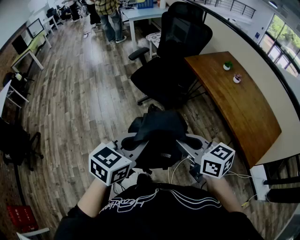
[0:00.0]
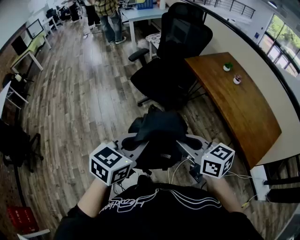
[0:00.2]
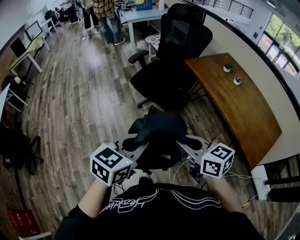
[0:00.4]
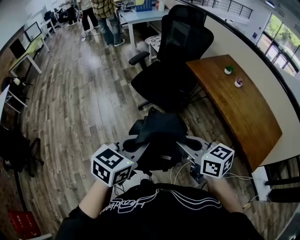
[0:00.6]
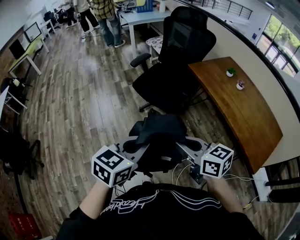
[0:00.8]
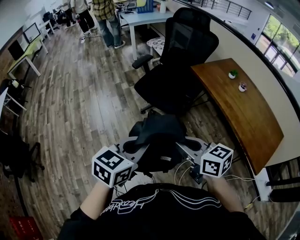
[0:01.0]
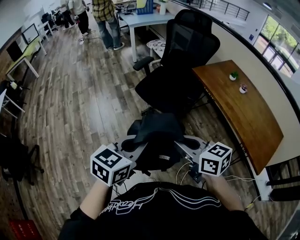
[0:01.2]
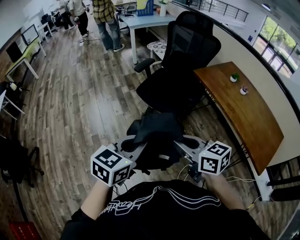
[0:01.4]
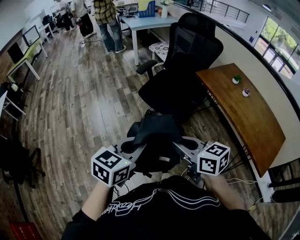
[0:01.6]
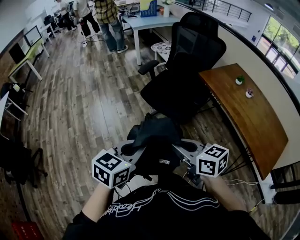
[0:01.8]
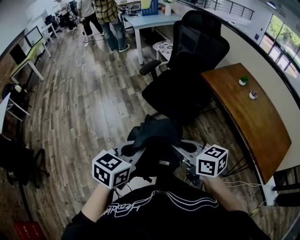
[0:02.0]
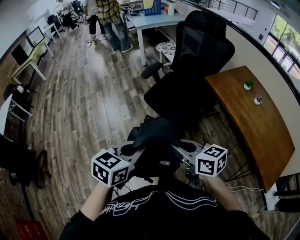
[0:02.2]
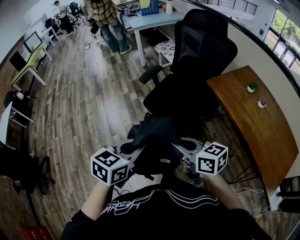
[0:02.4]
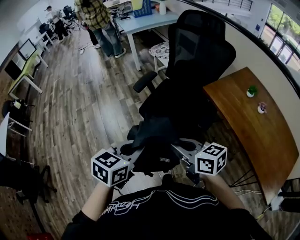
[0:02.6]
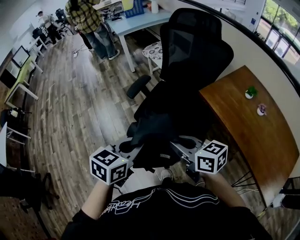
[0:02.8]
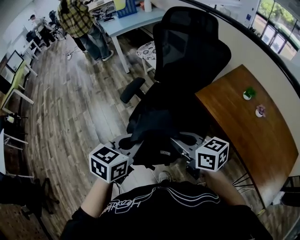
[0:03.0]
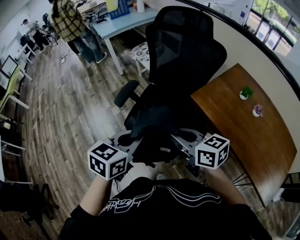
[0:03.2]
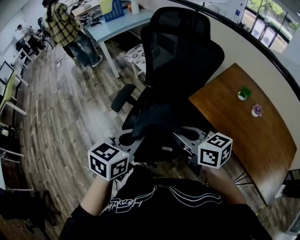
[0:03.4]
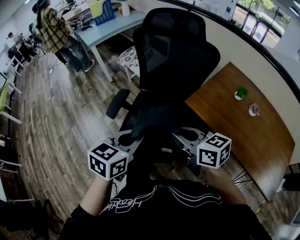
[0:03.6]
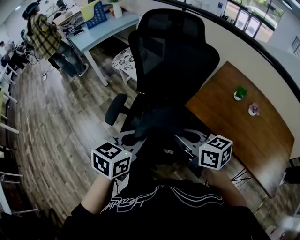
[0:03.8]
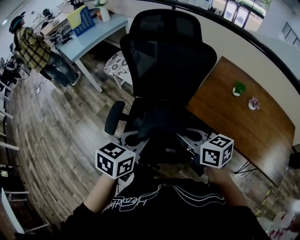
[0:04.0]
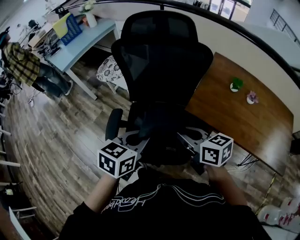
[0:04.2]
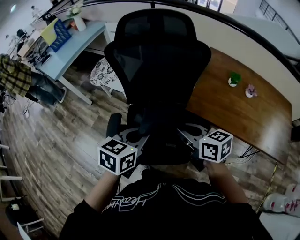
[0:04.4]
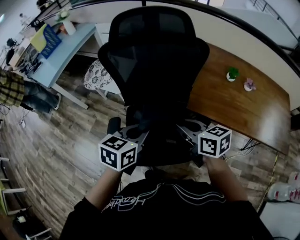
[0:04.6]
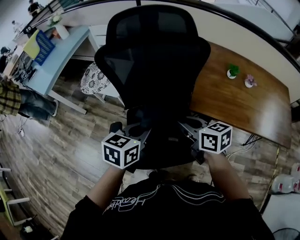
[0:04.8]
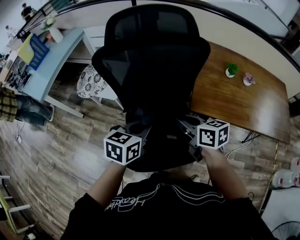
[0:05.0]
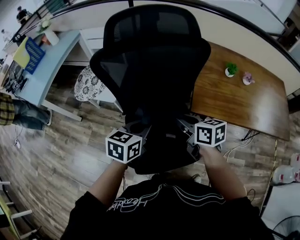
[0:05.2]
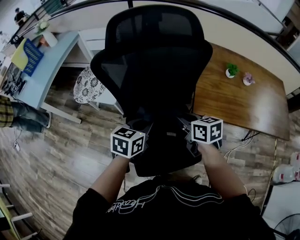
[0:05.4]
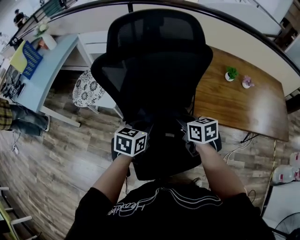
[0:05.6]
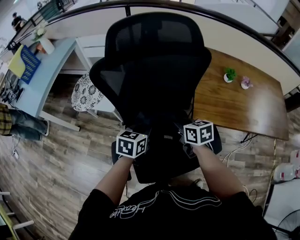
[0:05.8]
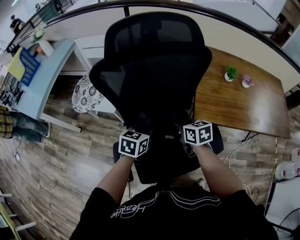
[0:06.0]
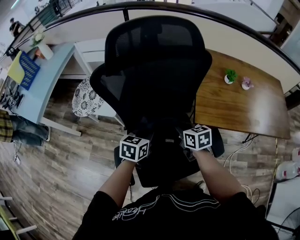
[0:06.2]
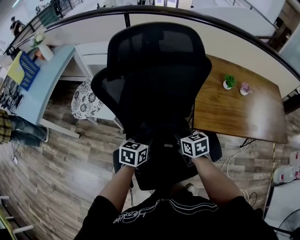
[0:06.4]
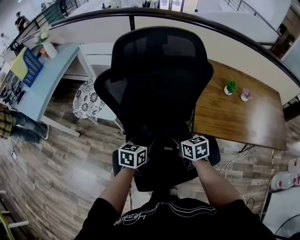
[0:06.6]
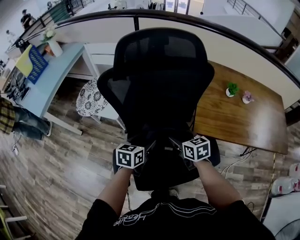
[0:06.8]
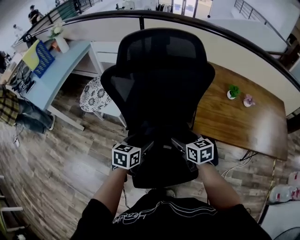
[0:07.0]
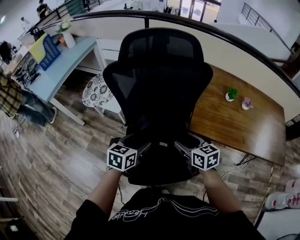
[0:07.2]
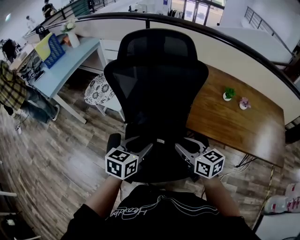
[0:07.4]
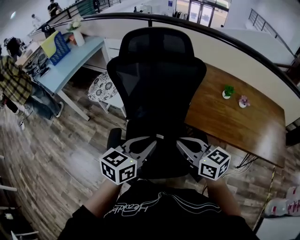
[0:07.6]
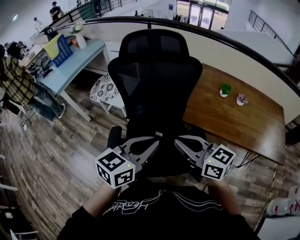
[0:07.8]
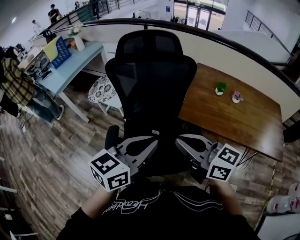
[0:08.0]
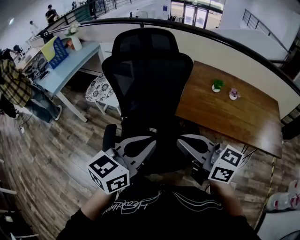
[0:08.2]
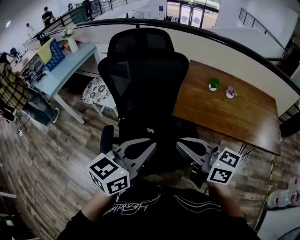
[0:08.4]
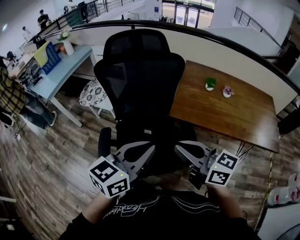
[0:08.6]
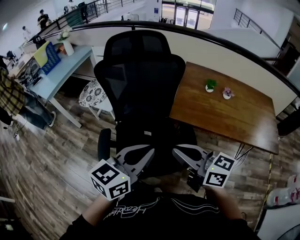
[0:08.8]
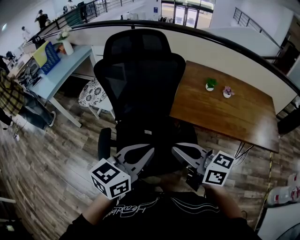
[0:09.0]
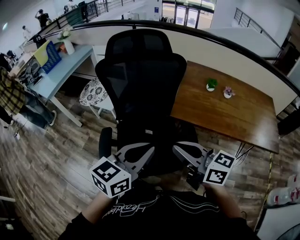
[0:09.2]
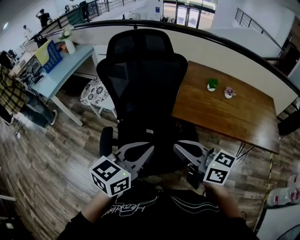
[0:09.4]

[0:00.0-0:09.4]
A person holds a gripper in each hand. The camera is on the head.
0:00.0 to 0:01.6: Both grippers travel together to the left and forward, about 15 cm.
0:01.6 to 0:03.2: Both grippers move forward, approximately 40 cm.
0:03.2 to 0:04.8: The left gripper ends up about 30 cm from where it was, and rotates about 30 degrees. The right gripper shifts by about 25 cm, and rotates some 40 degrees.
0:04.8 to 0:06.2: Both grippers travel together downward and forward, approximately 15 cm.
0:06.2 to 0:07.8: Both grippers move upward and backward, some 30 cm. The right gripper tips its fingers upward by approximately 30 degrees, and opens, then closes again. Meanwhile the left gripper changes its angle by approximately 20 degrees, and opens and closes again.
0:07.8 to 0:09.4: The right gripper goes approximately 5 cm backward.

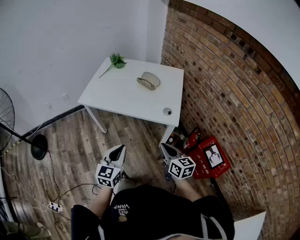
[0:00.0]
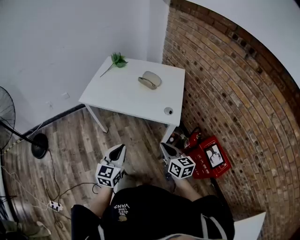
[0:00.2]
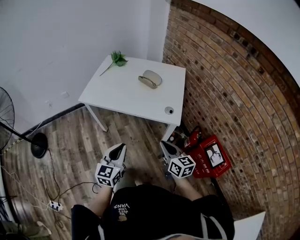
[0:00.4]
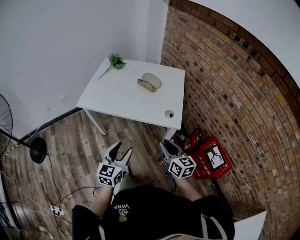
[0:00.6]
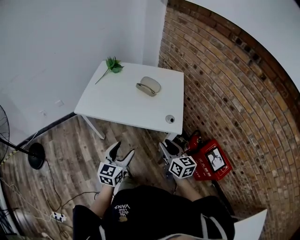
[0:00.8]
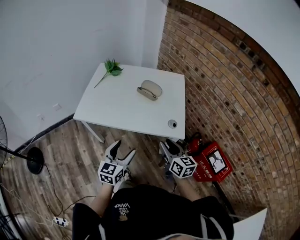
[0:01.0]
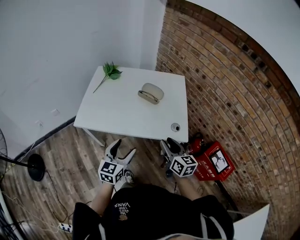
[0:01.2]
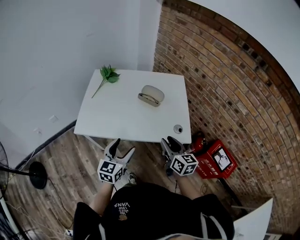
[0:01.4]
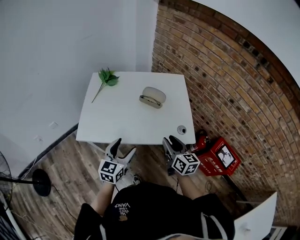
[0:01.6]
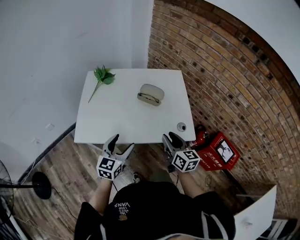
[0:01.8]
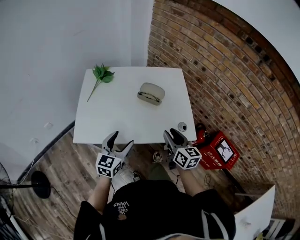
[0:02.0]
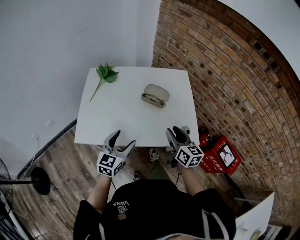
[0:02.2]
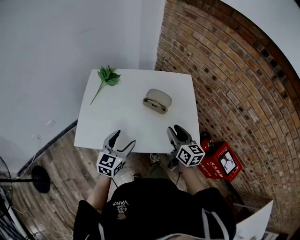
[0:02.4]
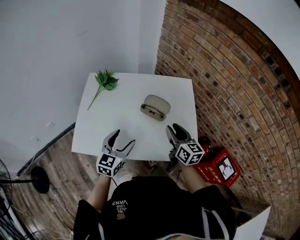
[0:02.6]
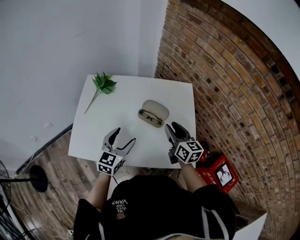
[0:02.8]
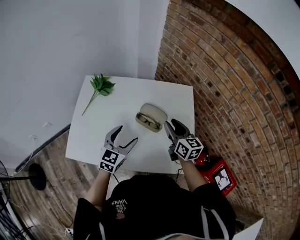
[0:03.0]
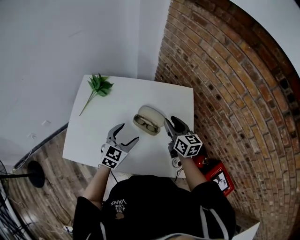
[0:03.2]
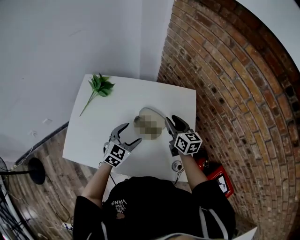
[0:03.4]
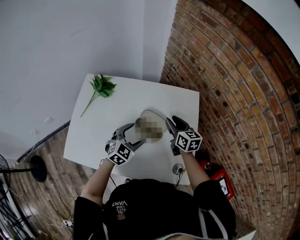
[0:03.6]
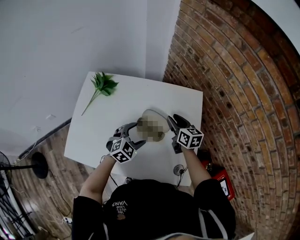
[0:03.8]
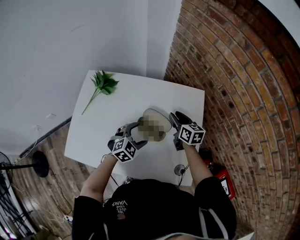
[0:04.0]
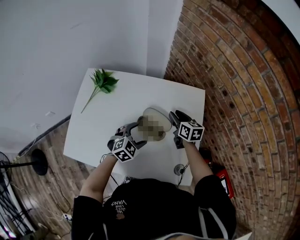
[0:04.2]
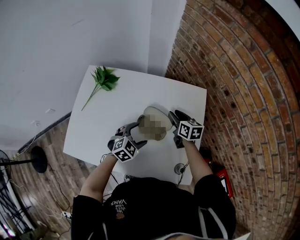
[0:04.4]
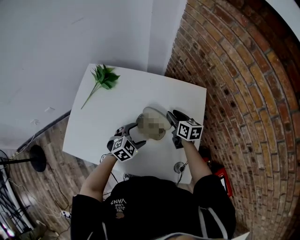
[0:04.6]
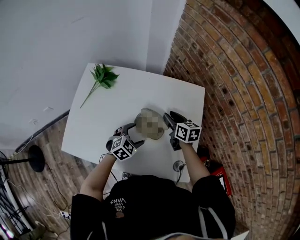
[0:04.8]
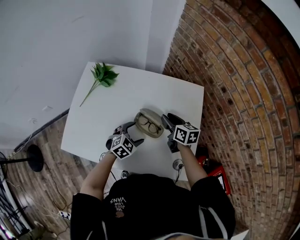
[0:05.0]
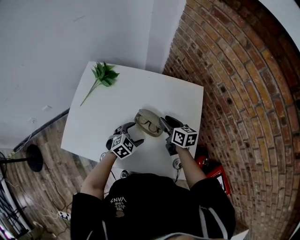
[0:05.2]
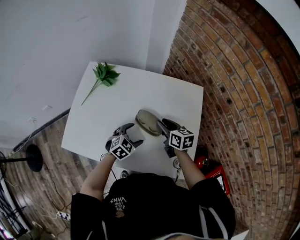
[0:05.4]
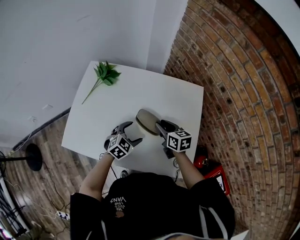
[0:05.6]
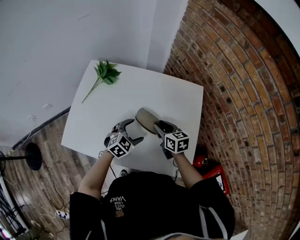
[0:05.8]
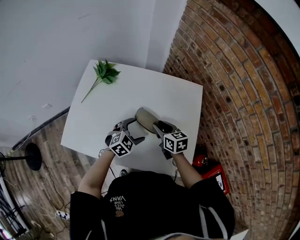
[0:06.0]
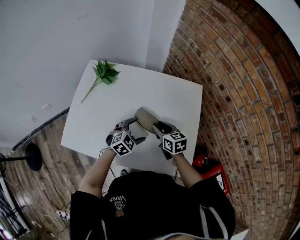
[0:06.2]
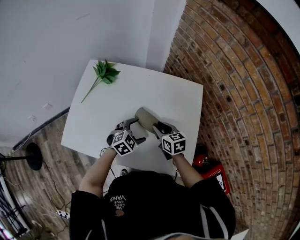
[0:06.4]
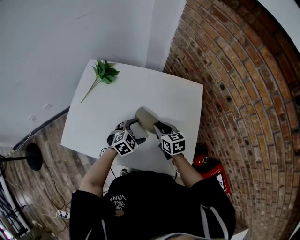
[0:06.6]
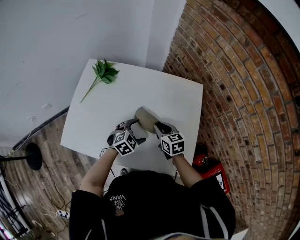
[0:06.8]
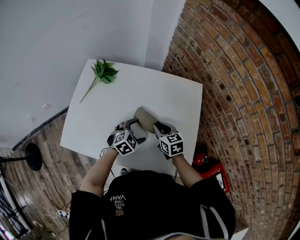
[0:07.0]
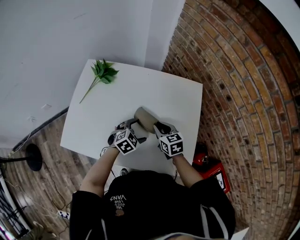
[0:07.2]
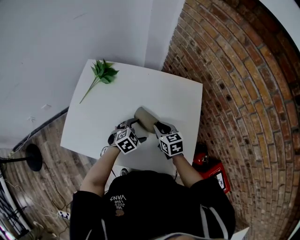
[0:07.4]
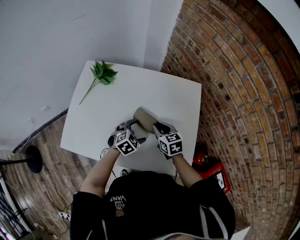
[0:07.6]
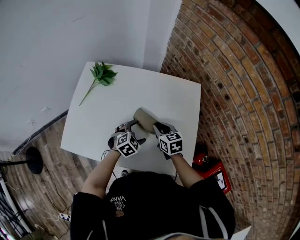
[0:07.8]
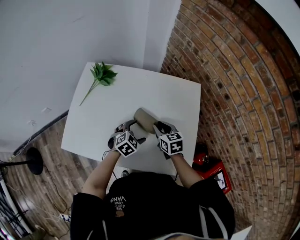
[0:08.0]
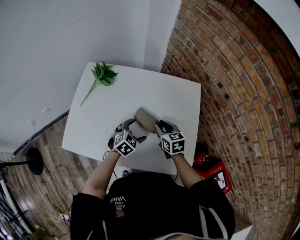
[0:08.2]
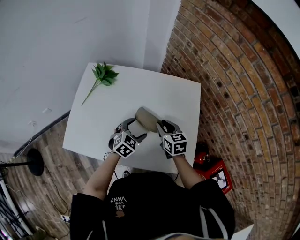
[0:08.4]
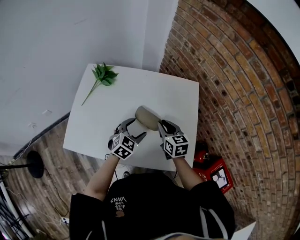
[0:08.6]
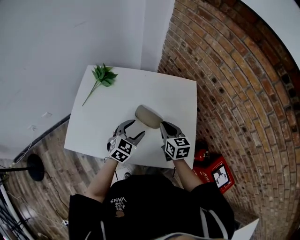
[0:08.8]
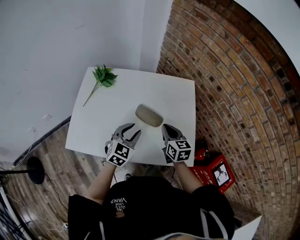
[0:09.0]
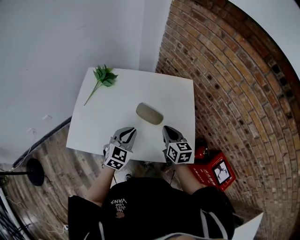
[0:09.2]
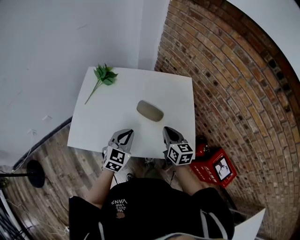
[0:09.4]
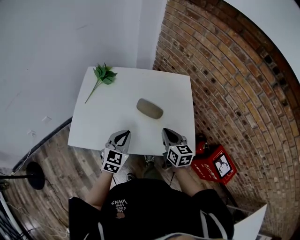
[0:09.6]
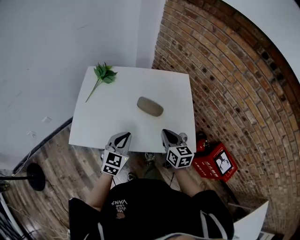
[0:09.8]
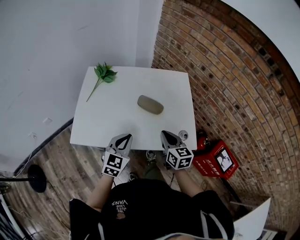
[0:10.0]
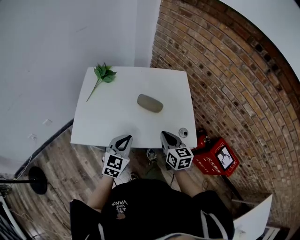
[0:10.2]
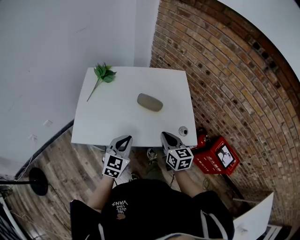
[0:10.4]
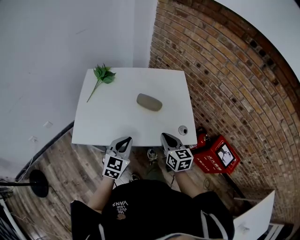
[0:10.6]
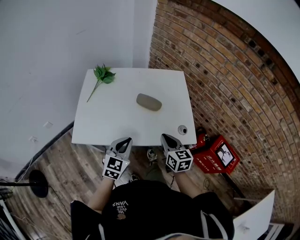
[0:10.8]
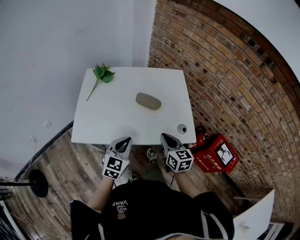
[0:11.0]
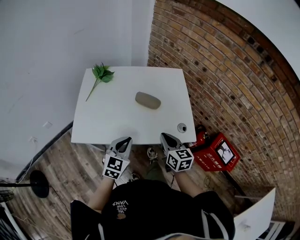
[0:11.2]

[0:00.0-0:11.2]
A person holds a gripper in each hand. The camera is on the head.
0:00.0 to 0:01.6: Both grippers travel together forward and to the left, approximately 25 cm. The right gripper opens. Meanwhile the left gripper opens up.
0:01.6 to 0:03.2: Both grippers travel together forward, approximately 30 cm.
0:03.2 to 0:04.8: The left gripper moves downward, some 10 cm, and swivels approximately 30 degrees; the right gripper moves downward and forward, some 10 cm.
0:04.8 to 0:06.4: The right gripper shifts some 10 cm backward.
0:06.4 to 0:08.0: The grippers stay close to where they were, moving slightly.
0:08.0 to 0:09.6: The left gripper travels upward, backward and to the left by about 20 cm, swivels about 30 degrees, and closes its fingers. The right gripper shifts about 15 cm backward and upward, turns by some 20 degrees, and closes up.
0:09.6 to 0:11.2: Both grippers travel together backward, some 10 cm.

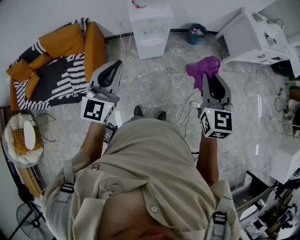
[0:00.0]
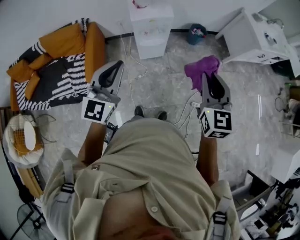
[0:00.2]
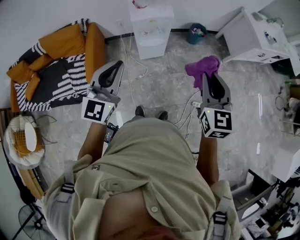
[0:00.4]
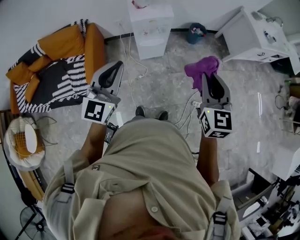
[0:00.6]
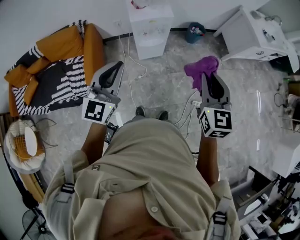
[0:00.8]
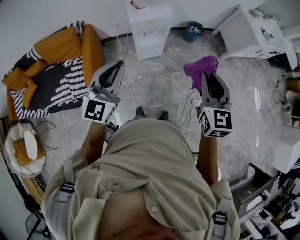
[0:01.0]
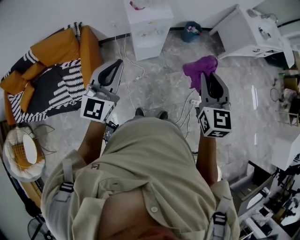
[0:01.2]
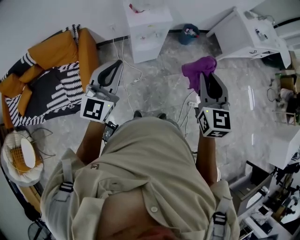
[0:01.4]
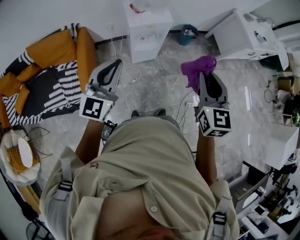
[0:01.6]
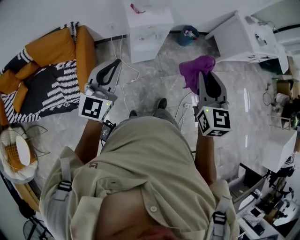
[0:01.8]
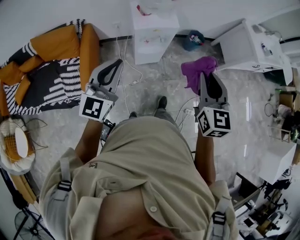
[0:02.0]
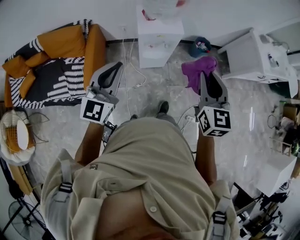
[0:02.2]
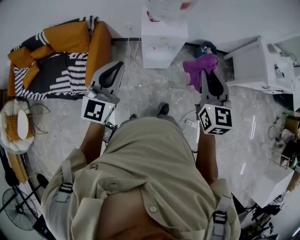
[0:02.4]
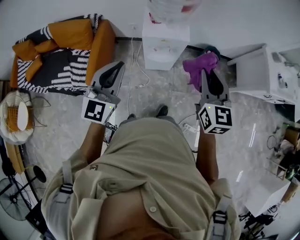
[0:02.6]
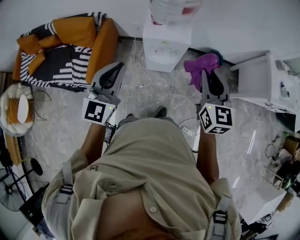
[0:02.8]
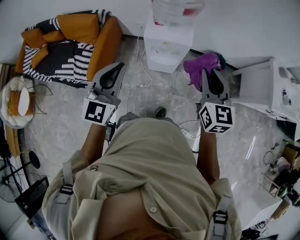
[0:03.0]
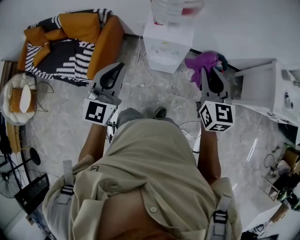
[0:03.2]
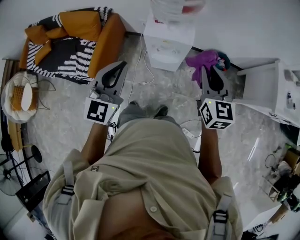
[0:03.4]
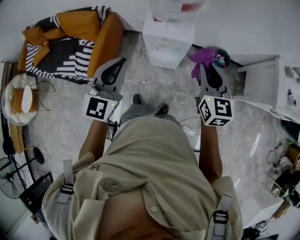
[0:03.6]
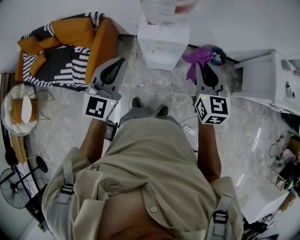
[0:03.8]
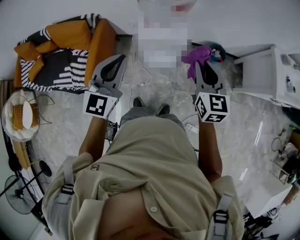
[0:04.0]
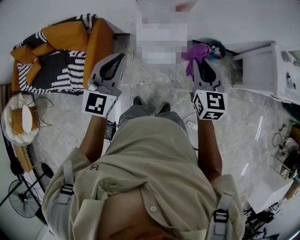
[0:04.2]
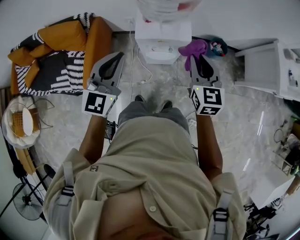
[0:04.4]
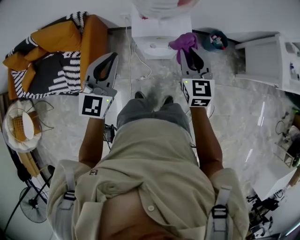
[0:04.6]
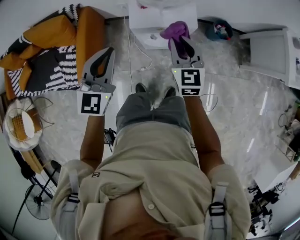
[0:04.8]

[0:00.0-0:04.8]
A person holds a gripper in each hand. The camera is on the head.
0:00.0 to 0:01.6: The right gripper moves to the left, approximately 10 cm. The left gripper shifts some 10 cm to the left and forward.
0:01.6 to 0:03.2: The left gripper changes place by about 15 cm, and turns by some 30 degrees. The right gripper shifts by about 25 cm, and swivels about 30 degrees.
0:03.2 to 0:04.8: The right gripper shifts some 30 cm downward, forward and to the left. Meanwhile the left gripper heads forward and downward, covering approximately 25 cm.
